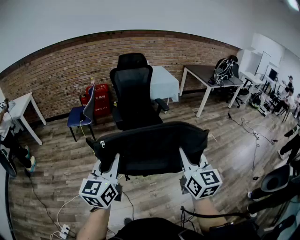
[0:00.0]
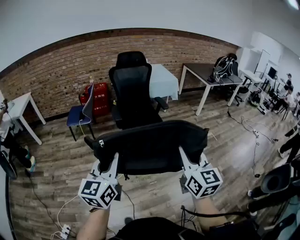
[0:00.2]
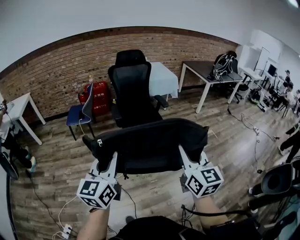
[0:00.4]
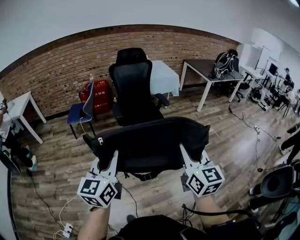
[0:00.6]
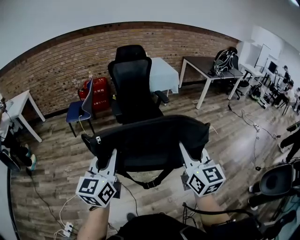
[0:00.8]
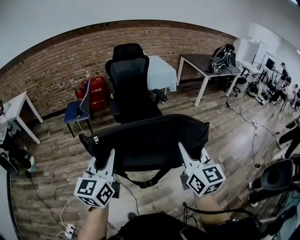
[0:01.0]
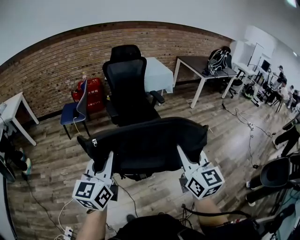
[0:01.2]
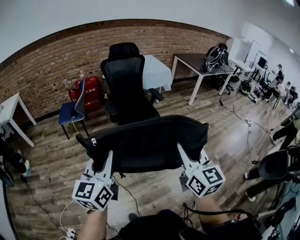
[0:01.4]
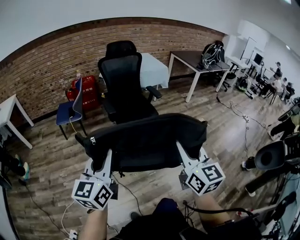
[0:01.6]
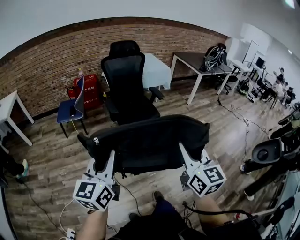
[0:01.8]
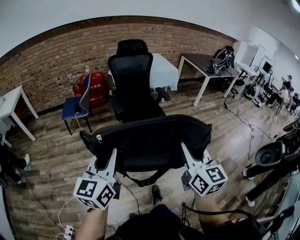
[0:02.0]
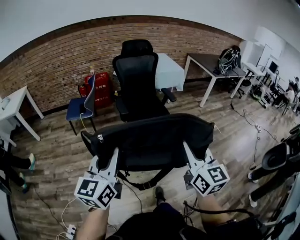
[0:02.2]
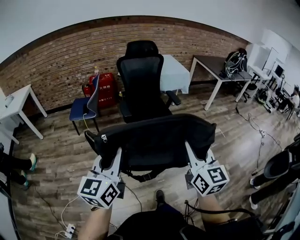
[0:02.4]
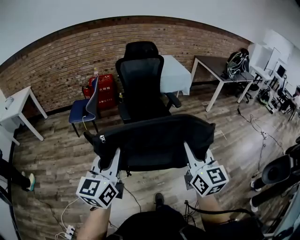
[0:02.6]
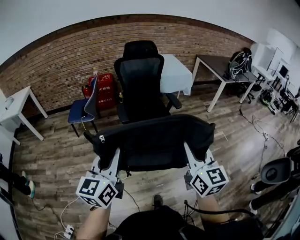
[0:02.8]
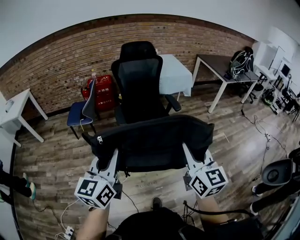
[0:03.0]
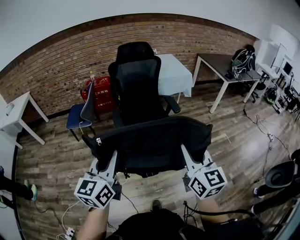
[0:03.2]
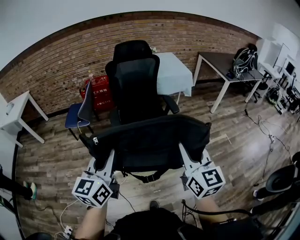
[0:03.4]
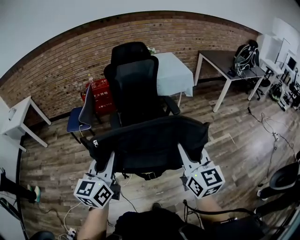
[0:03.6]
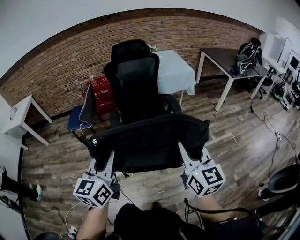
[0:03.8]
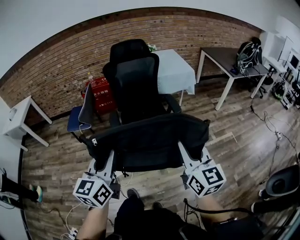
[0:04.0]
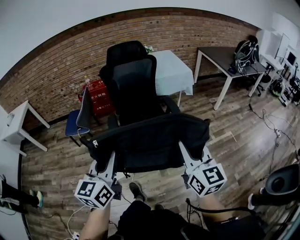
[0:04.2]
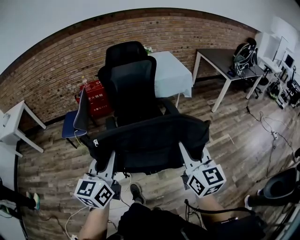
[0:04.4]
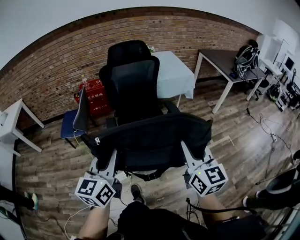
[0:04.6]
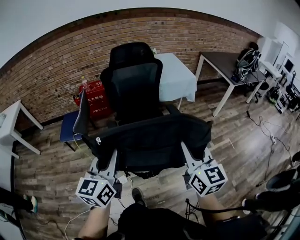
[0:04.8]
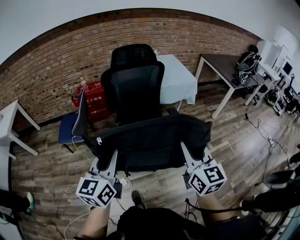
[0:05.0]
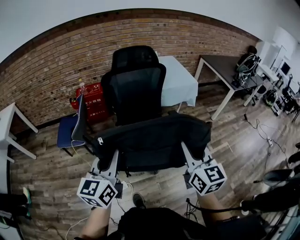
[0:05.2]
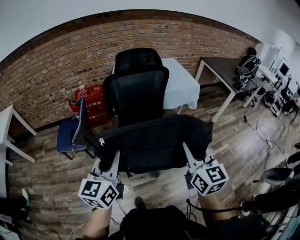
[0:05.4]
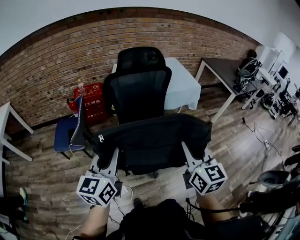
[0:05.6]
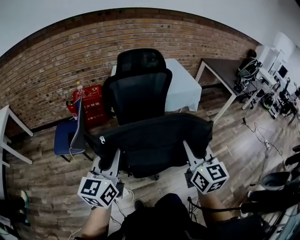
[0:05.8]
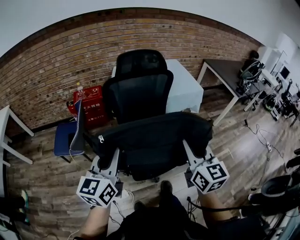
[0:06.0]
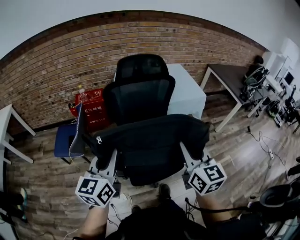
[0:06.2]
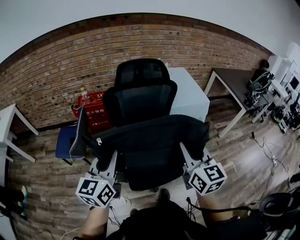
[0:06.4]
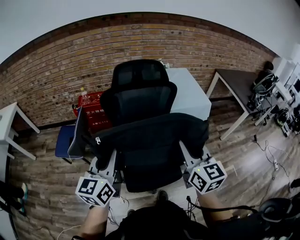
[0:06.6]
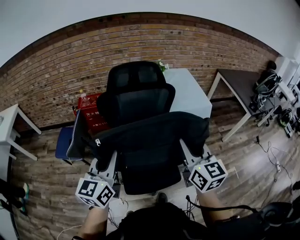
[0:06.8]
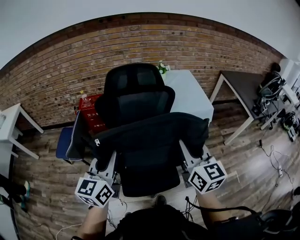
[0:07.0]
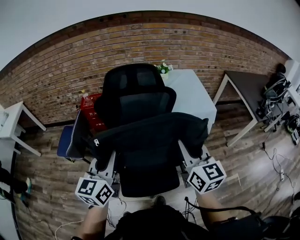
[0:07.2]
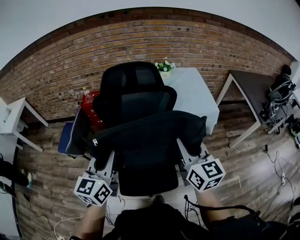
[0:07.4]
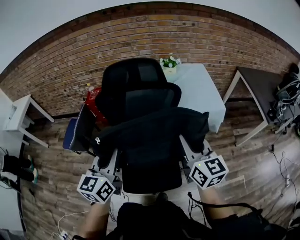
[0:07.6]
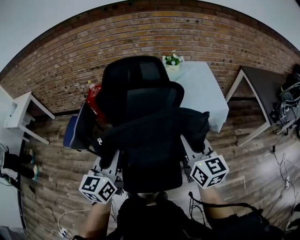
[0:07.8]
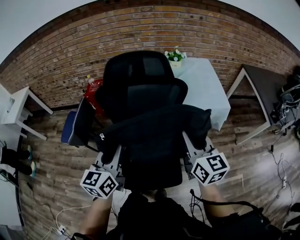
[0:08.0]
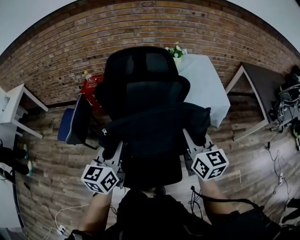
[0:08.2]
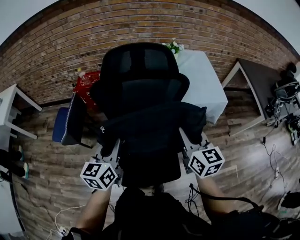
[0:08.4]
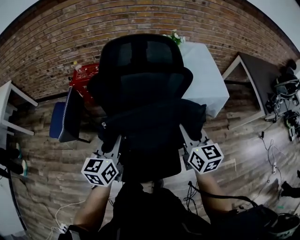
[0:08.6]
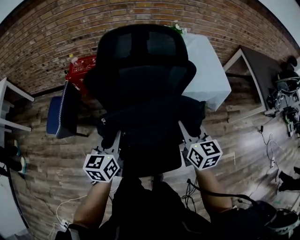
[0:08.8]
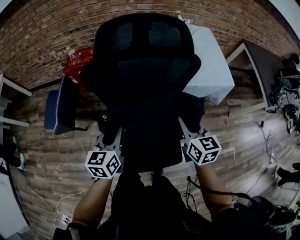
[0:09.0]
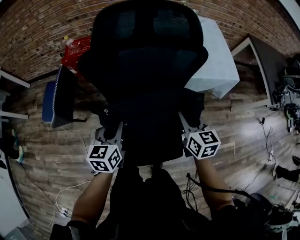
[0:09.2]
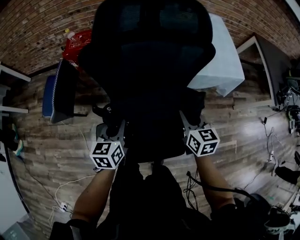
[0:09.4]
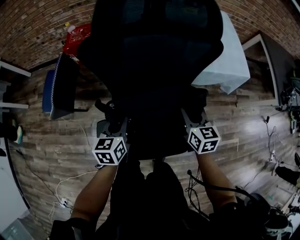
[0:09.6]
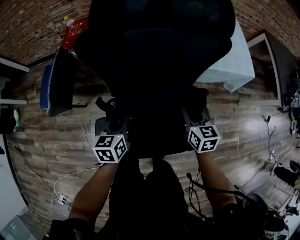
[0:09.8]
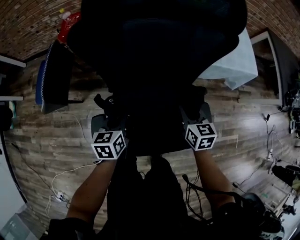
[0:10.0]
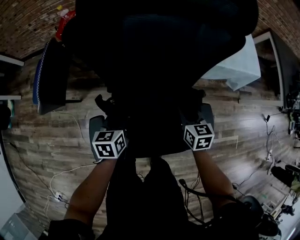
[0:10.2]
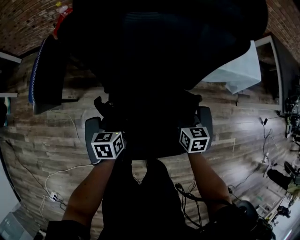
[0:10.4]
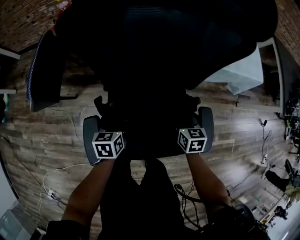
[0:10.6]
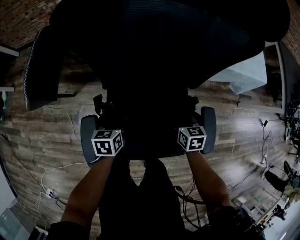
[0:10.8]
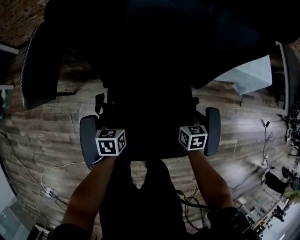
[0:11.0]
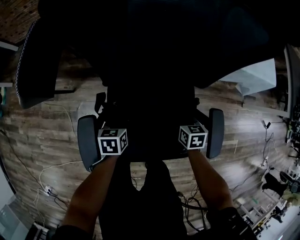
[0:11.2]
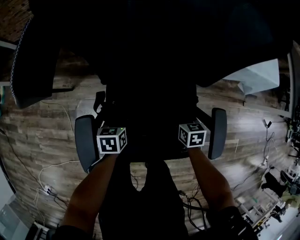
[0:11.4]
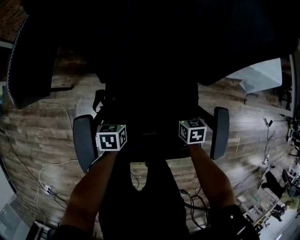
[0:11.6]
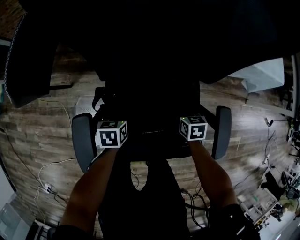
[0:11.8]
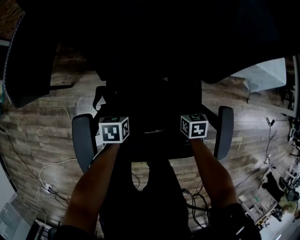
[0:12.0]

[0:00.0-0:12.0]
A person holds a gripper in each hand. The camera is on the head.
0:00.0 to 0:01.6: Both grippers travel together to the left, about 5 cm.
0:01.6 to 0:03.0: The grippers both shift forward by roughly 20 cm.
0:03.0 to 0:04.4: Both grippers move forward and to the right, roughly 15 cm.
0:04.4 to 0:06.0: Both grippers travel together forward and to the left, some 30 cm.
0:06.0 to 0:07.6: The left gripper is displaced to the right and forward by approximately 20 cm; the right gripper heads forward and to the right, covering about 25 cm, and changes its angle by approximately 20 degrees.
0:07.6 to 0:09.0: The two grippers go about 20 cm downward and forward. The right gripper rotates approximately 20 degrees.
0:09.0 to 0:10.4: Both grippers move downward, about 25 cm. The left gripper swivels about 20 degrees.
0:10.4 to 0:12.0: Both grippers move downward, about 20 cm.

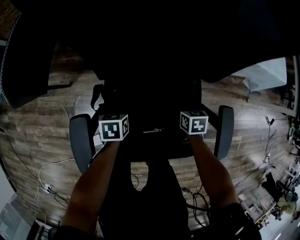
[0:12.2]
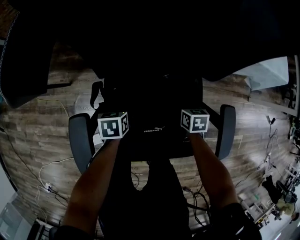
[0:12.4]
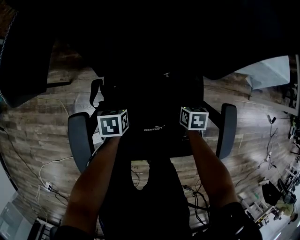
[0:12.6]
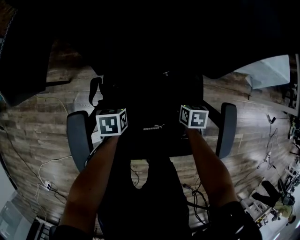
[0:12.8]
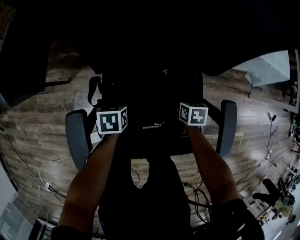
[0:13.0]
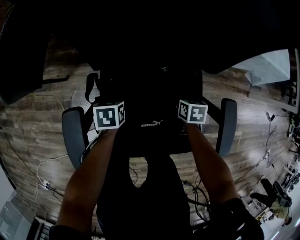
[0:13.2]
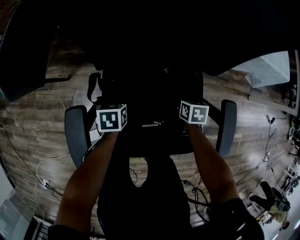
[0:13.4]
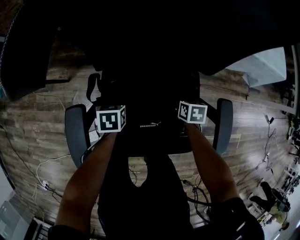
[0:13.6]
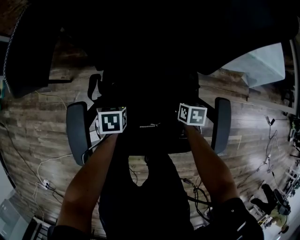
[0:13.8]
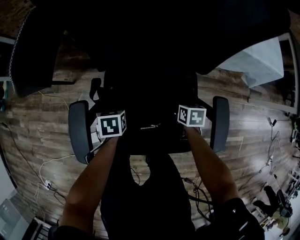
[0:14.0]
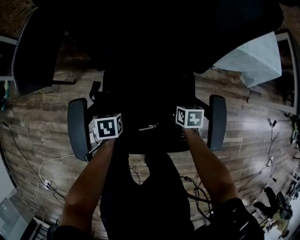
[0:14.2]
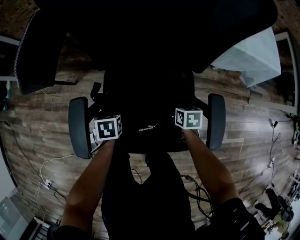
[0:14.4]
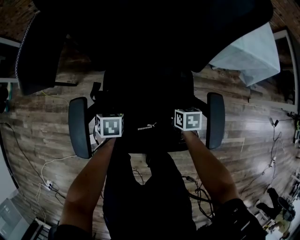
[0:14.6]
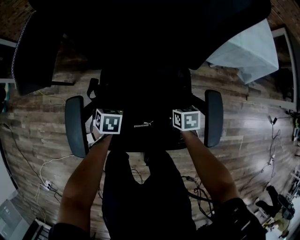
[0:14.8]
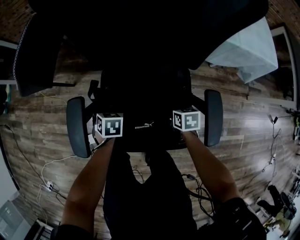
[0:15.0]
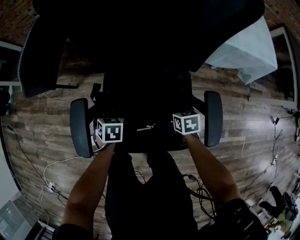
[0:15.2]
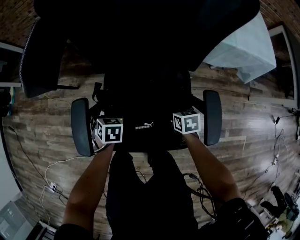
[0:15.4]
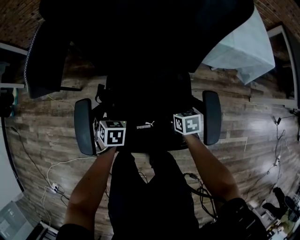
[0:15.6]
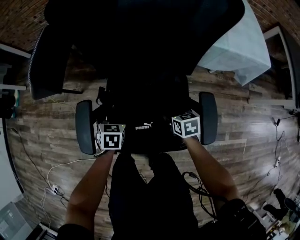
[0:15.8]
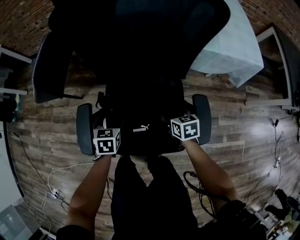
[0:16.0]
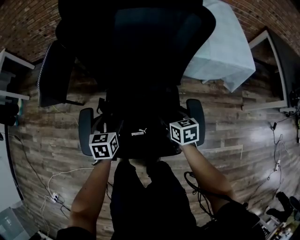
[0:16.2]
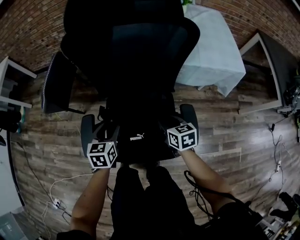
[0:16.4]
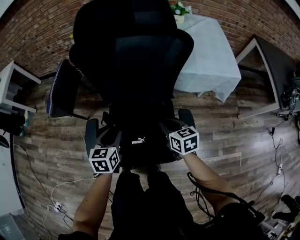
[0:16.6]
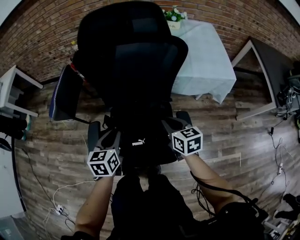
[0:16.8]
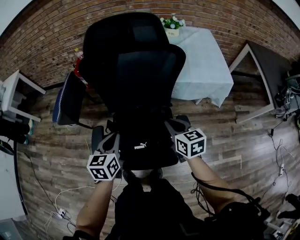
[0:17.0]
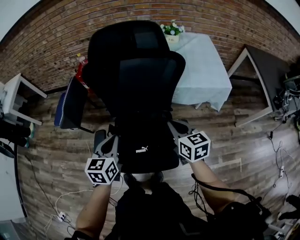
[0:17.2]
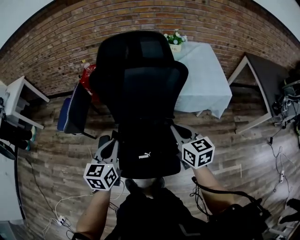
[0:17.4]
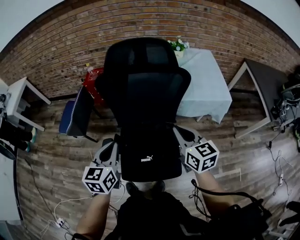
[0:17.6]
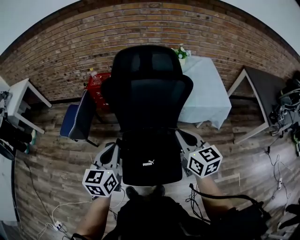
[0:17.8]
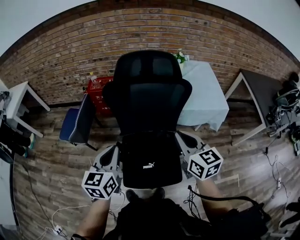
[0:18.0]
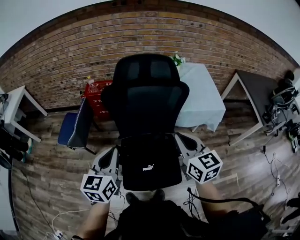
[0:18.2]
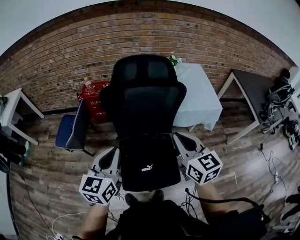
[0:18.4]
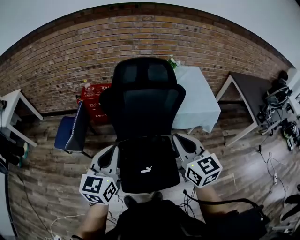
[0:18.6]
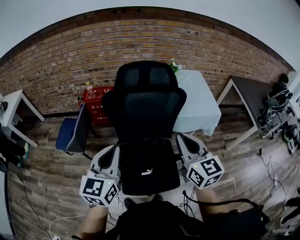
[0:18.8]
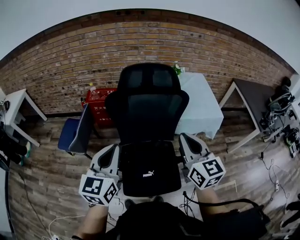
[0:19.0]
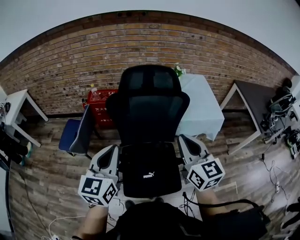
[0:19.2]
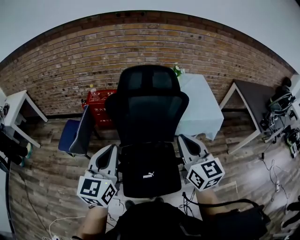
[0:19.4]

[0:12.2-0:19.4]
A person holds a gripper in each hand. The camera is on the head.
0:12.2 to 0:13.6: There are only small adjustments of the grippers.
0:13.6 to 0:15.0: The right gripper is displaced backward by about 5 cm. Meanwhile the left gripper ends up some 5 cm from where it was.
0:15.0 to 0:16.6: Both grippers travel together upward, about 25 cm. The left gripper tilts its fingers about 30 degrees upward. Meanwhile the right gripper rotates roughly 30 degrees, and closes.
0:16.6 to 0:18.0: Both grippers move upward, about 25 cm. The right gripper changes its angle by approximately 30 degrees. The left gripper swivels some 20 degrees, and closes.
0:18.0 to 0:19.4: The two grippers go roughly 10 cm upward.

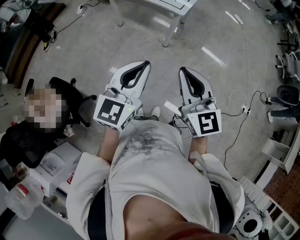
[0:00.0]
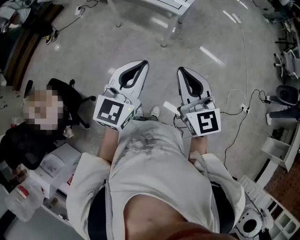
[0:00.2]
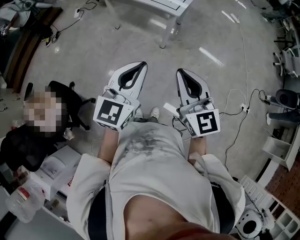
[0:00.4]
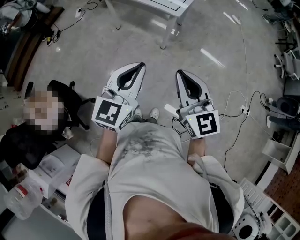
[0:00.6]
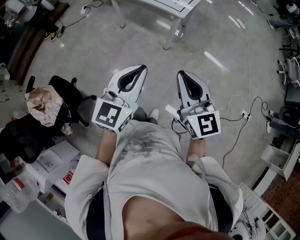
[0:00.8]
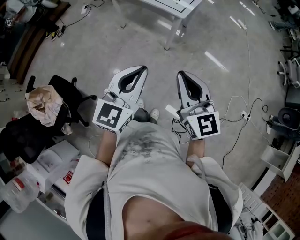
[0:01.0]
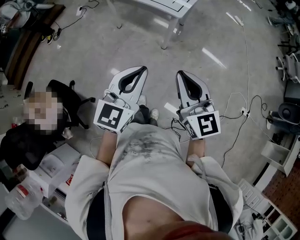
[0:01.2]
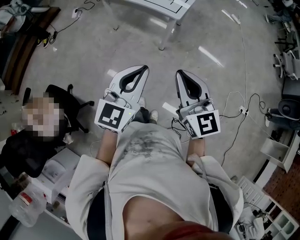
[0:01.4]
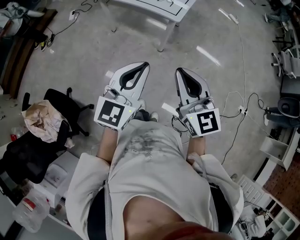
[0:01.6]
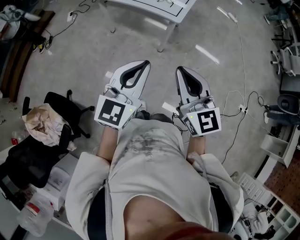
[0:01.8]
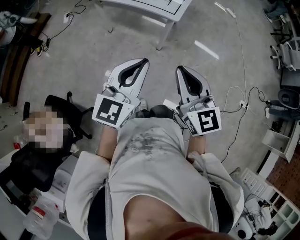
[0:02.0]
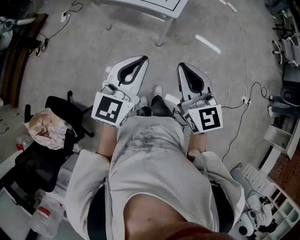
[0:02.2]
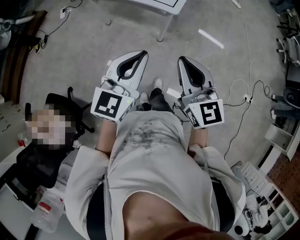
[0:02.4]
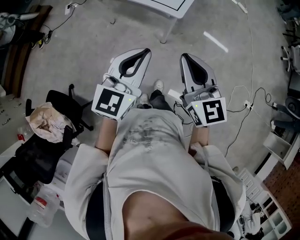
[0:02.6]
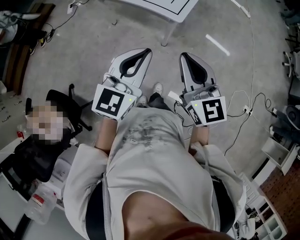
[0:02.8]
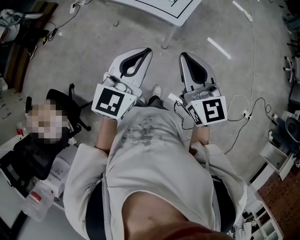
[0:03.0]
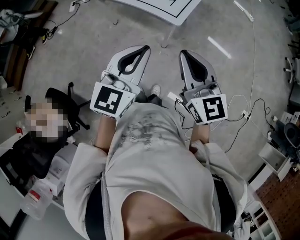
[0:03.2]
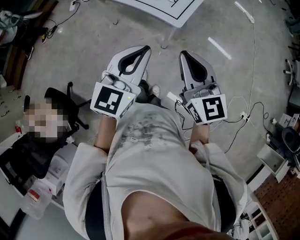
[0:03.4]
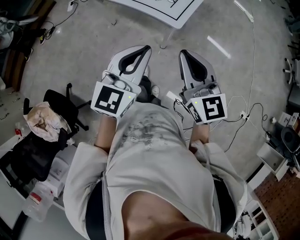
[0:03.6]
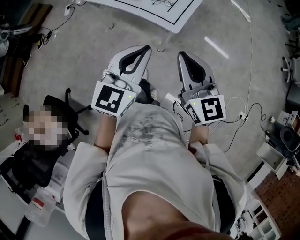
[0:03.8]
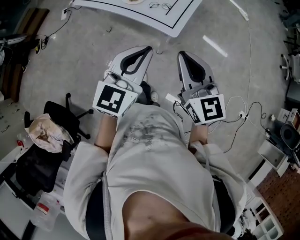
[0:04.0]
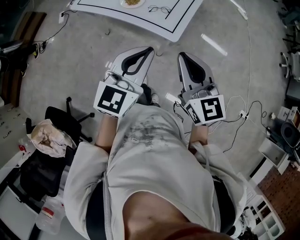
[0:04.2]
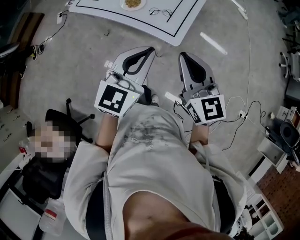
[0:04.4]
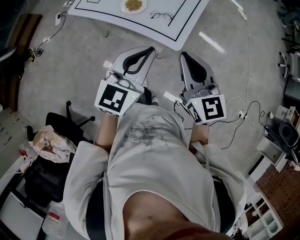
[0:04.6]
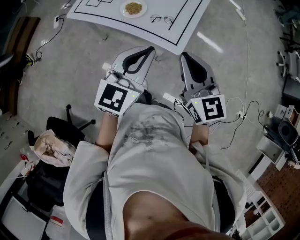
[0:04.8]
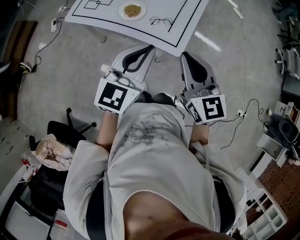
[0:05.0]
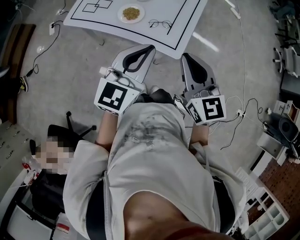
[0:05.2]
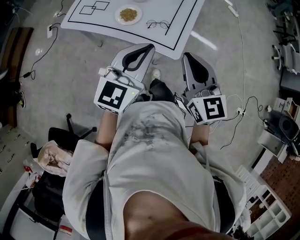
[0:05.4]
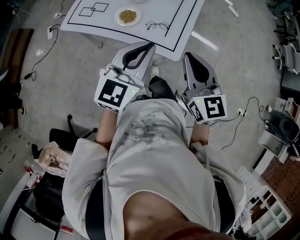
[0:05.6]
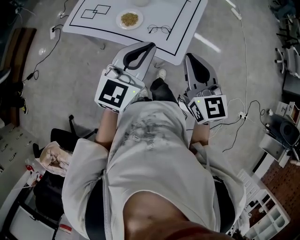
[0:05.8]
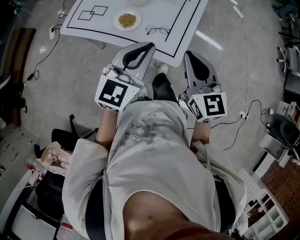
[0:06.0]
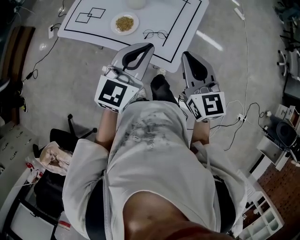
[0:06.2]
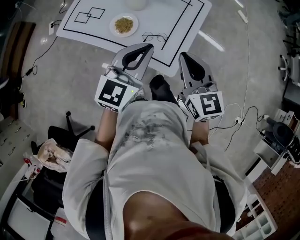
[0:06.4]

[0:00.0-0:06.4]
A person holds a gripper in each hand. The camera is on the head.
0:00.0 to 0:01.6: Both grippers move forward, roughly 10 cm.
0:01.6 to 0:03.2: Both grippers move forward, roughly 20 cm.
0:03.2 to 0:04.8: Both grippers travel together forward, some 20 cm.
0:04.8 to 0:06.4: Both grippers travel together forward, some 15 cm.
